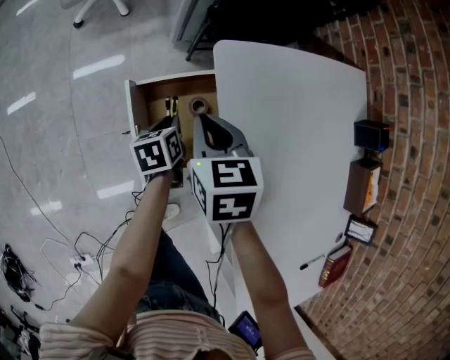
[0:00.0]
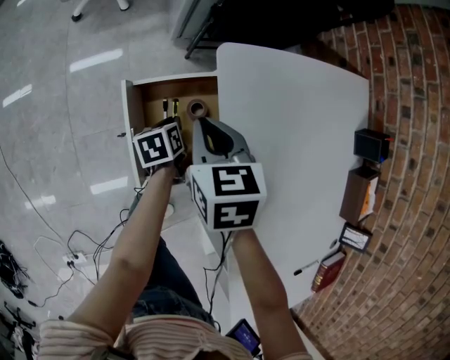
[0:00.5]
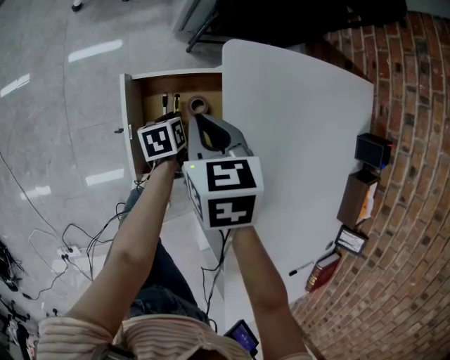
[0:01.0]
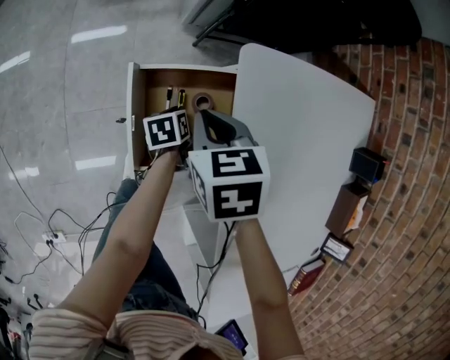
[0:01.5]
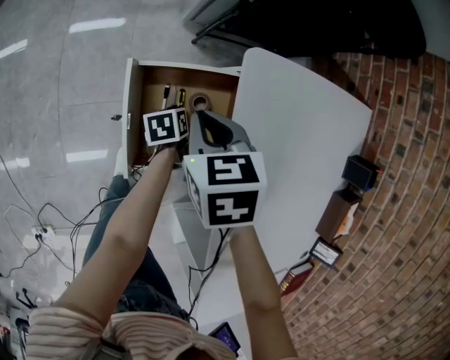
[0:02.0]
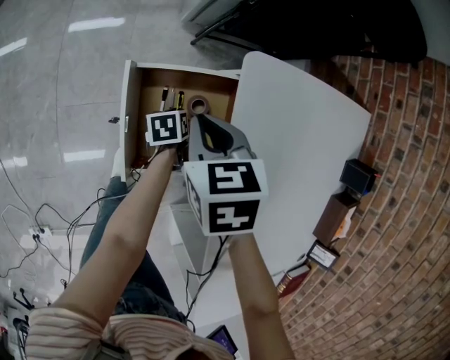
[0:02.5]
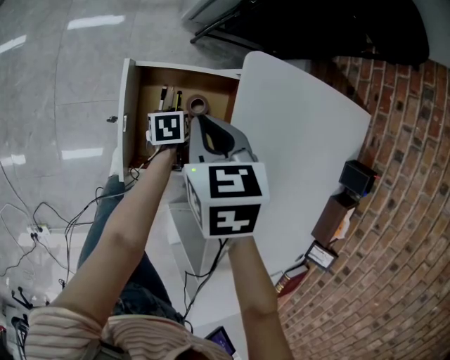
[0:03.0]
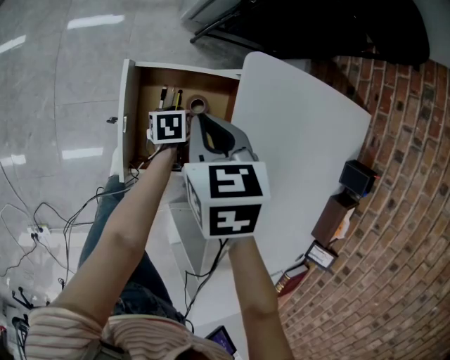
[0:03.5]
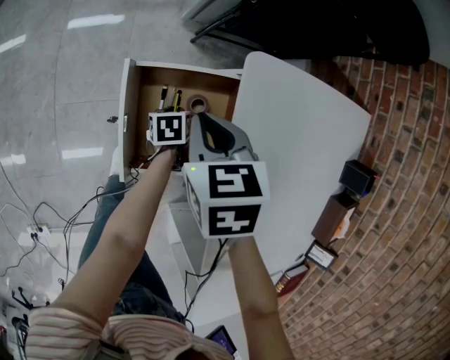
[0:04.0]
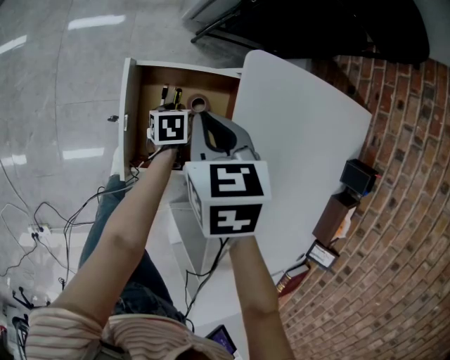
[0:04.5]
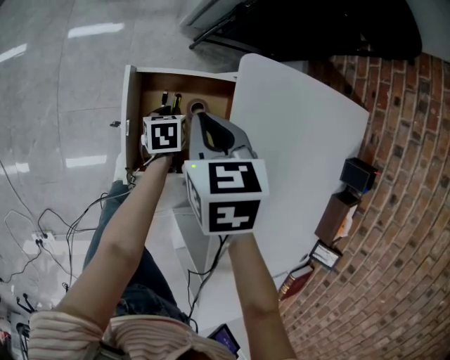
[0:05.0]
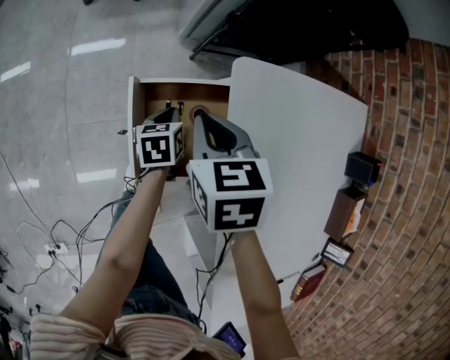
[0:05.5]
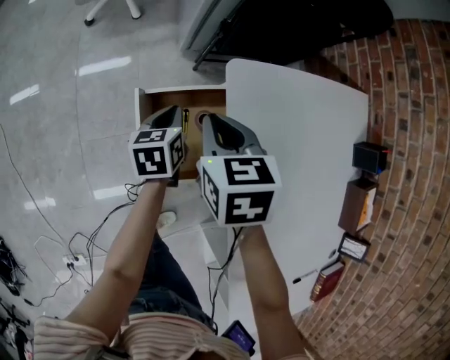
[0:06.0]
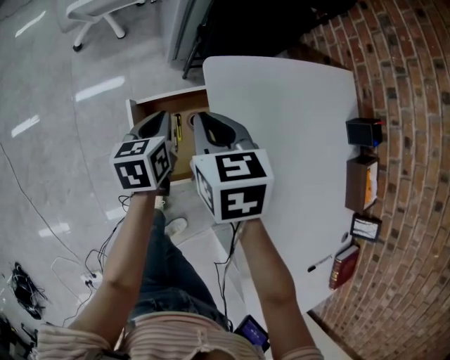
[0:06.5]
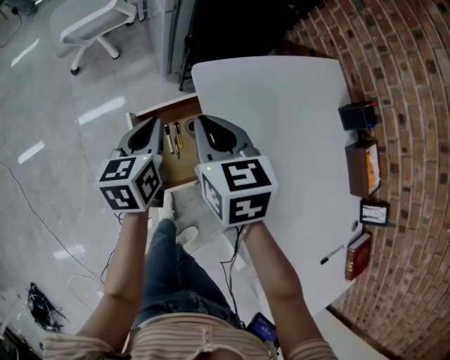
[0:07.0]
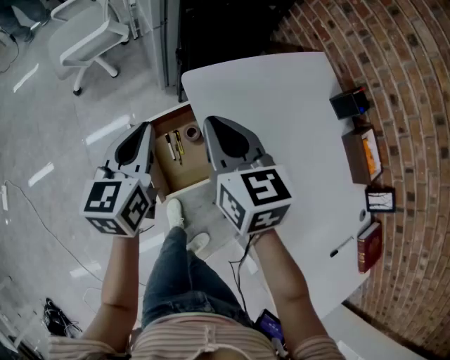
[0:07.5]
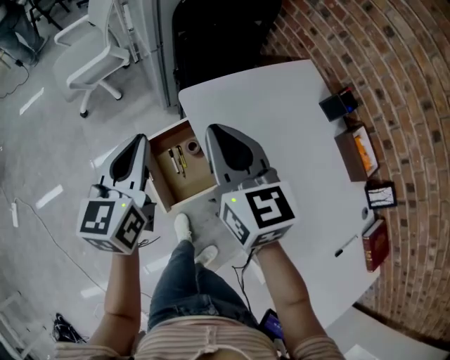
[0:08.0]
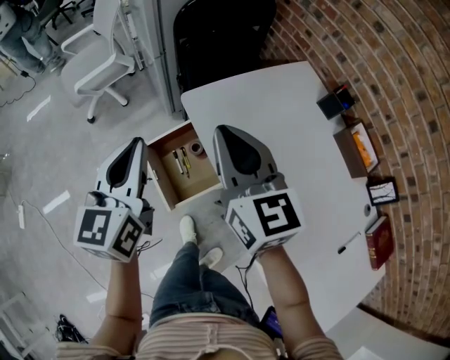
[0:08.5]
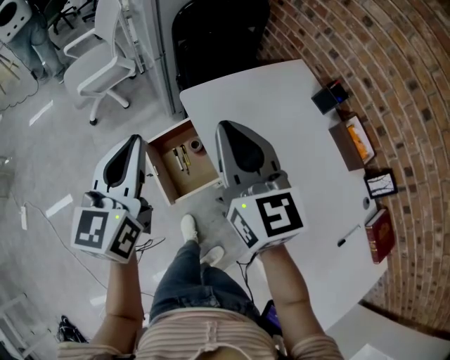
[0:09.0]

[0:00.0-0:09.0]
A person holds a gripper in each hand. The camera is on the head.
0:00.0 to 0:02.0: The right gripper shifts by about 5 cm. The left gripper heads downward, covering some 10 cm.
0:02.0 to 0:04.5: The grippers make only small movements.
0:04.5 to 0:07.0: The left gripper moves upward, approximately 30 cm, and tilts its fingers about 30 degrees upward. The right gripper shifts about 10 cm upward, and rotates some 30 degrees.
0:07.0 to 0:09.0: Both grippers move upward and backward, some 25 cm. The left gripper turns by about 30 degrees; the right gripper tilts its fingers roughly 30 degrees upward.

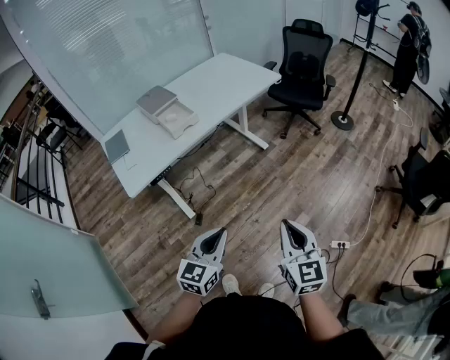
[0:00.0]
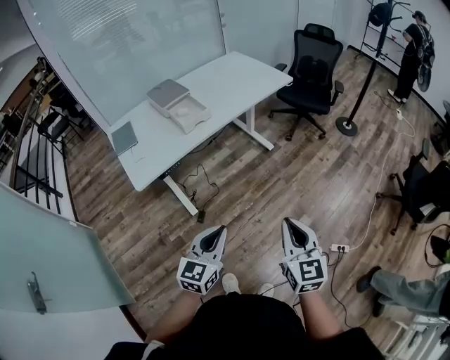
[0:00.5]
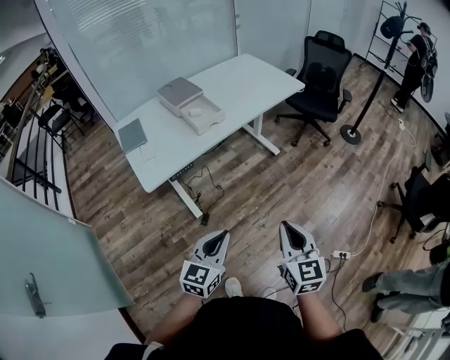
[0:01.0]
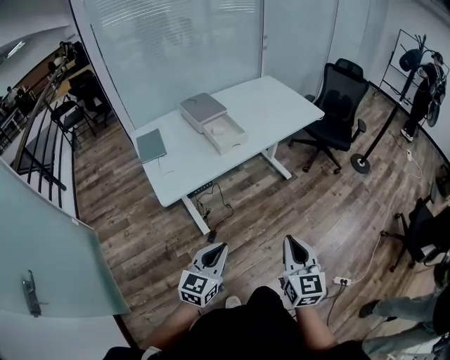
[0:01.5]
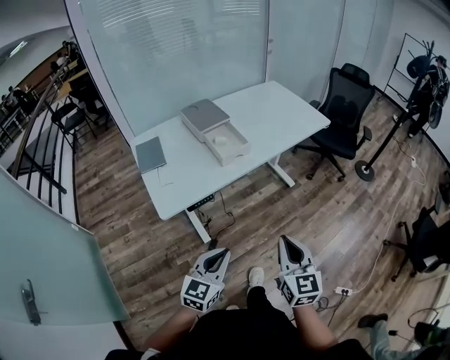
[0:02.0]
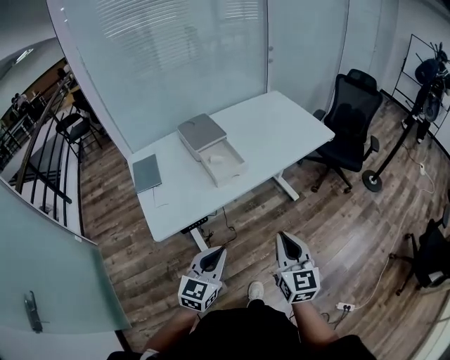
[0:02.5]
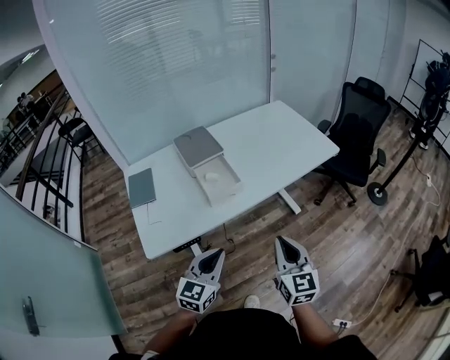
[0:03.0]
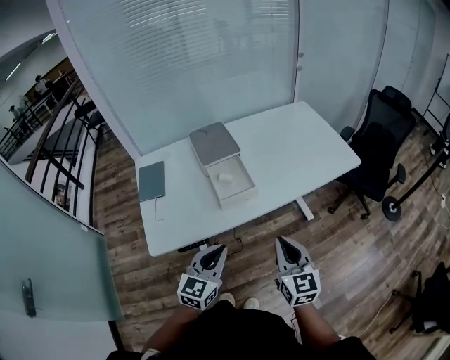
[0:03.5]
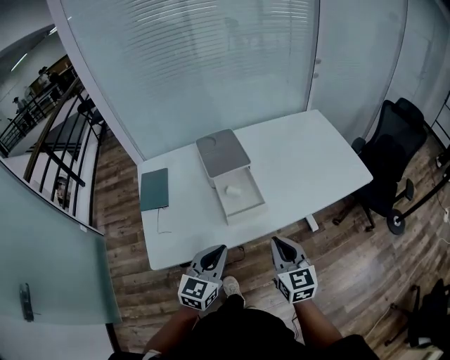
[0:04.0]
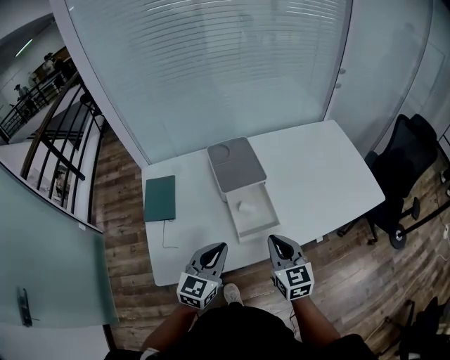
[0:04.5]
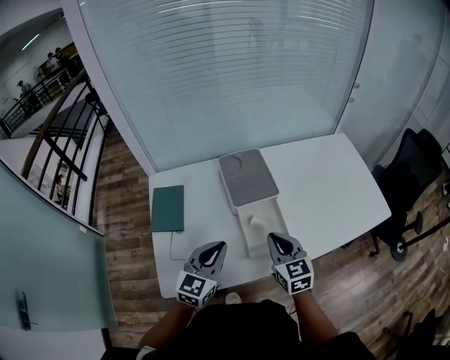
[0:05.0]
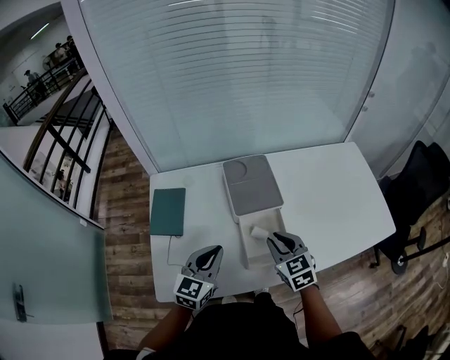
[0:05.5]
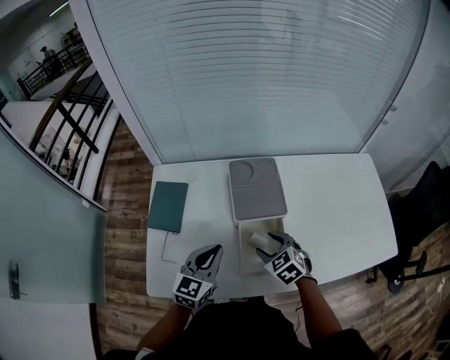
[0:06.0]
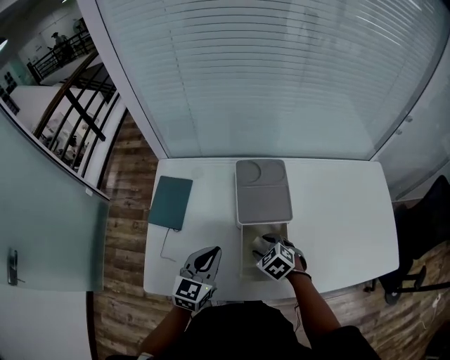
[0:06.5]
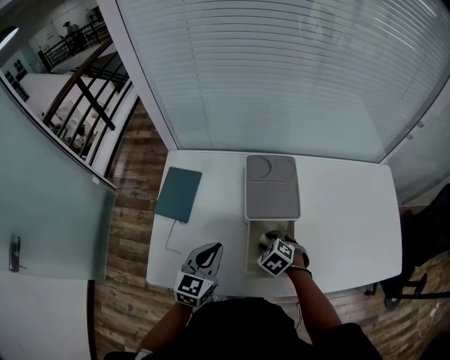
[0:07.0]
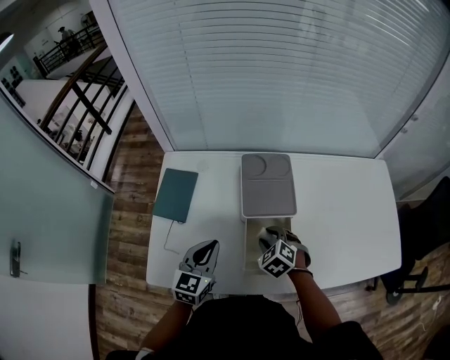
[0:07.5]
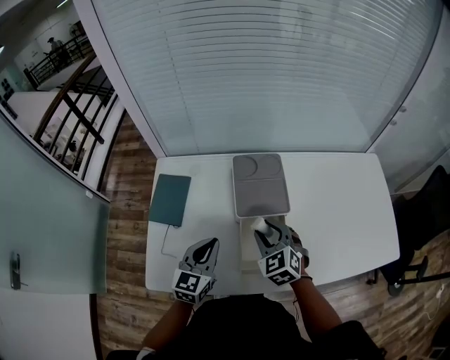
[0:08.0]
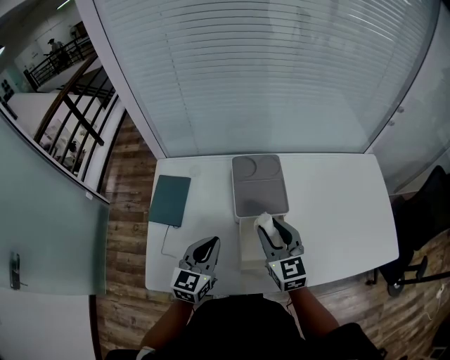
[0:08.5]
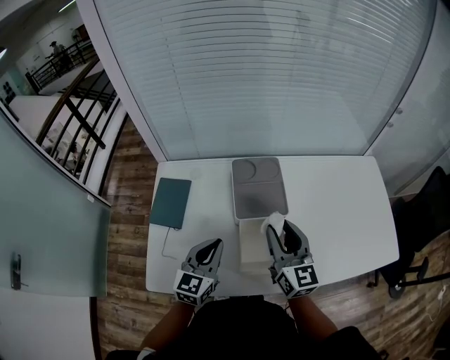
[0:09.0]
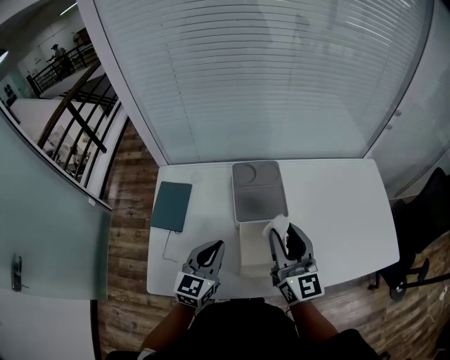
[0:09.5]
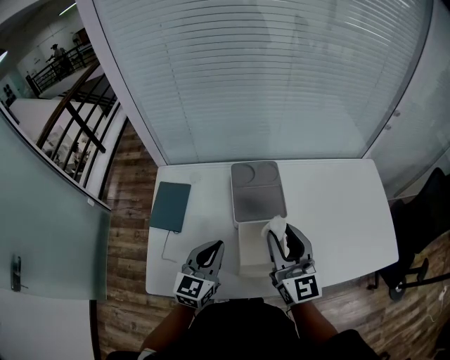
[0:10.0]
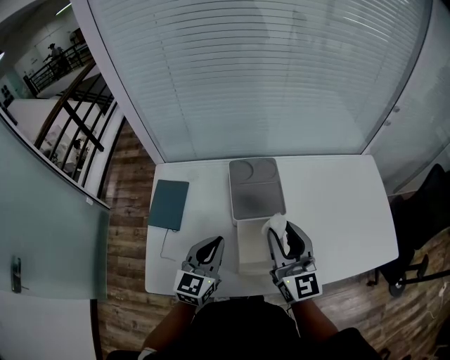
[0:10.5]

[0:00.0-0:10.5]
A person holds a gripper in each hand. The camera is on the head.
0:00.0 to 0:02.0: The two grippers go approximately 20 cm to the left and forward.
0:02.0 to 0:04.0: Both grippers move forward, about 30 cm. The right gripper swivels some 20 degrees.
0:04.0 to 0:06.5: The right gripper changes place by about 30 cm, angles its fingers downward, by about 50 degrees, and opens; the left gripper shifts by roughly 25 cm, and turns by some 20 degrees.
0:06.5 to 0:08.5: The right gripper is displaced upward by about 15 cm, and angles its fingers upward, by about 40 degrees.
0:08.5 to 0:10.5: The right gripper heads upward, covering approximately 10 cm, and swivels roughly 20 degrees.

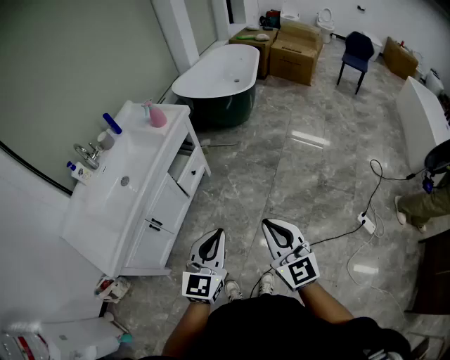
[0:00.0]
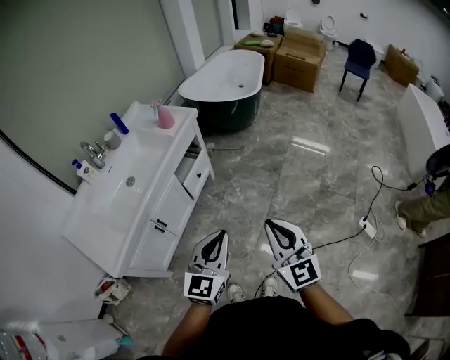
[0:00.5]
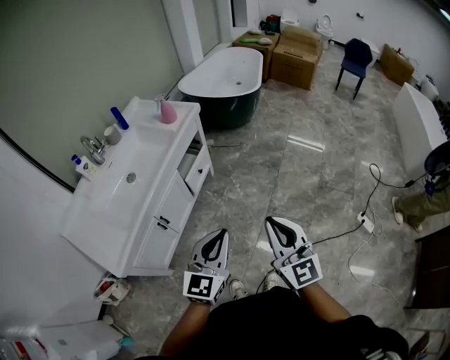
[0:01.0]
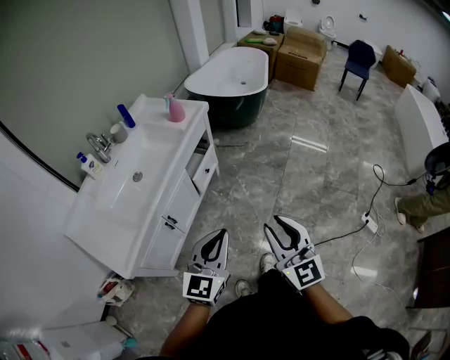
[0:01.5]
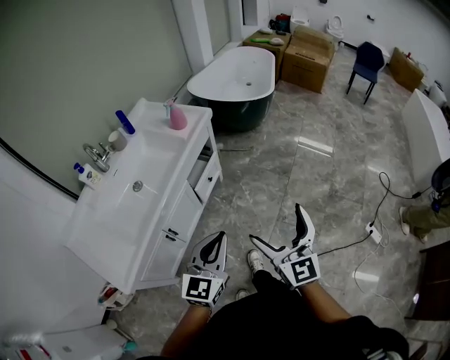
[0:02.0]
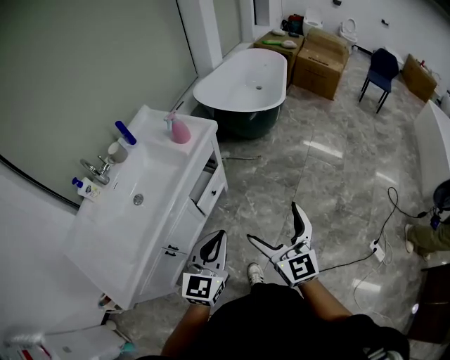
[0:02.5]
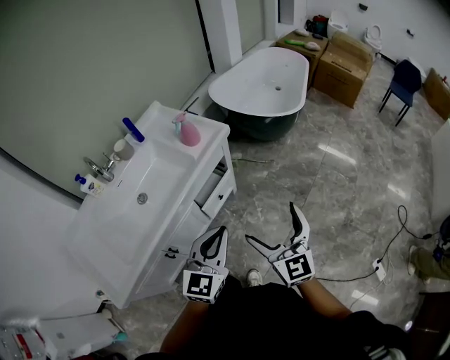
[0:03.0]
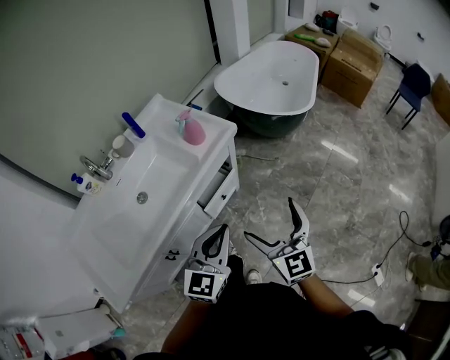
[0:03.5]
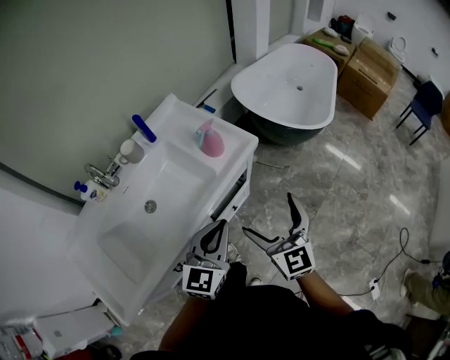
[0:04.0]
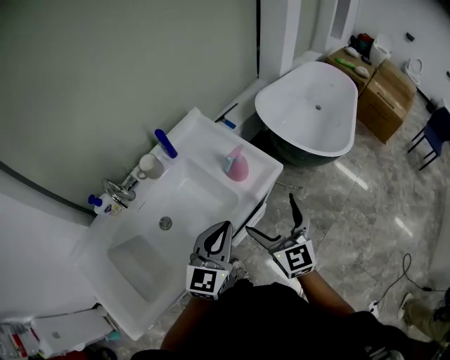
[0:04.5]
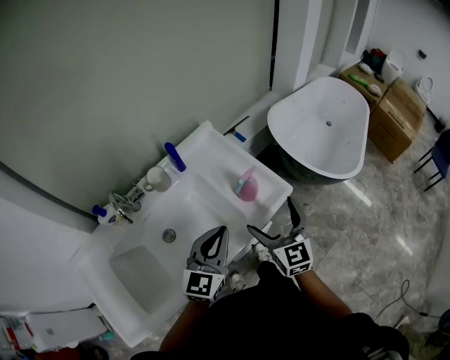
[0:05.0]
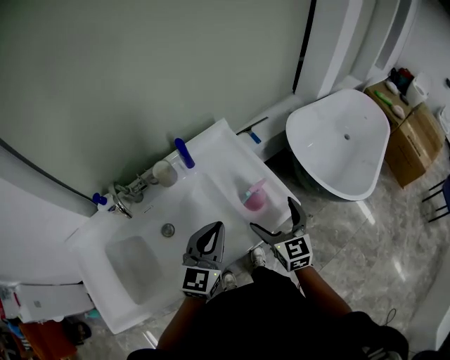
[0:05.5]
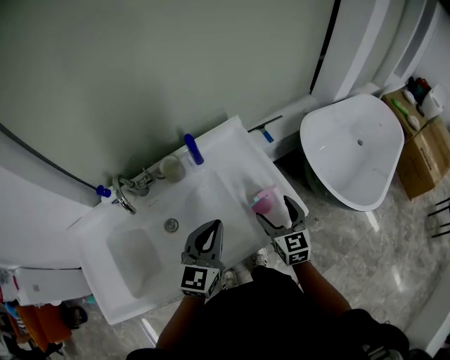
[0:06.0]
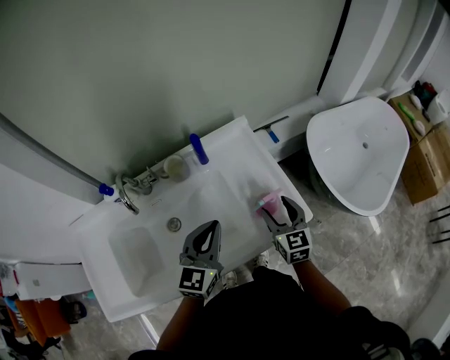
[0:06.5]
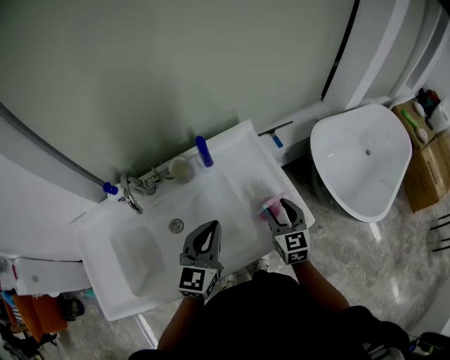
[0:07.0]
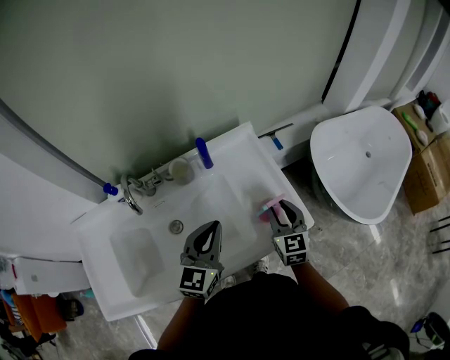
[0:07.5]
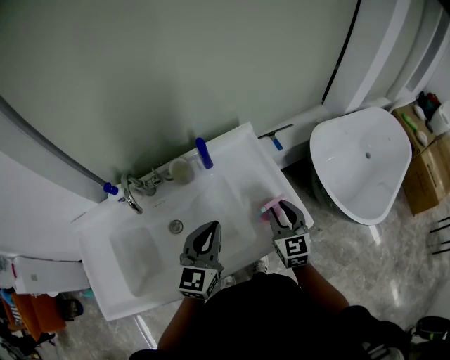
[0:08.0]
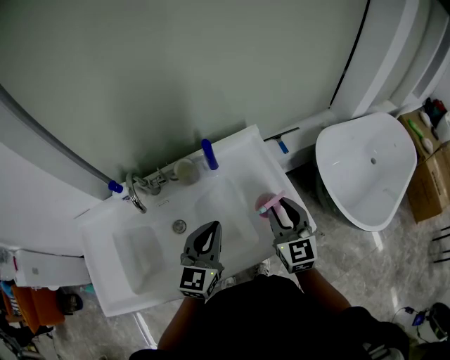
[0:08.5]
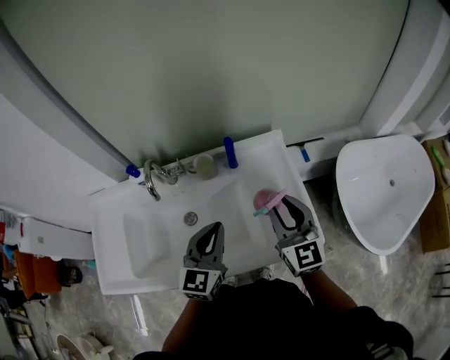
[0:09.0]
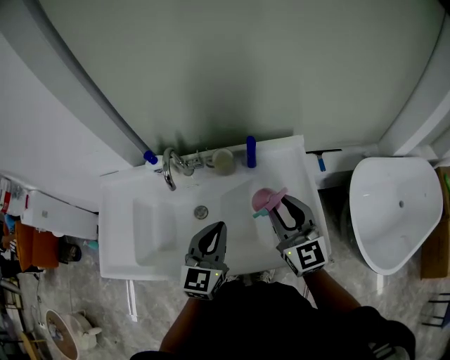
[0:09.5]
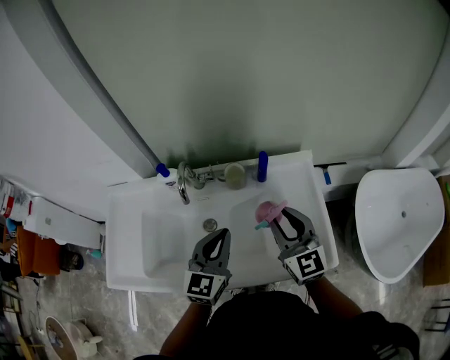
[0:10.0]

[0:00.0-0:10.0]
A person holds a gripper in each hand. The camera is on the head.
0:00.0 to 0:02.0: The two grippers go about 15 cm to the left and forward. The right gripper opens up.
0:02.0 to 0:04.0: Both grippers travel together forward, roughly 35 cm. The right gripper changes its angle by approximately 20 degrees.
0:04.0 to 0:06.0: The right gripper shifts approximately 30 cm forward, and rotates roughly 20 degrees. Meanwhile the left gripper shifts approximately 25 cm forward and to the left, and swivels roughly 20 degrees.
0:06.0 to 0:08.0: The right gripper closes its fingers.
0:08.0 to 0:10.0: The right gripper travels to the left and upward by approximately 20 cm, and rotates approximately 30 degrees. The left gripper travels to the left by about 10 cm.
